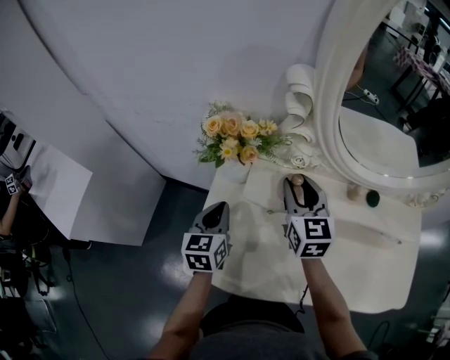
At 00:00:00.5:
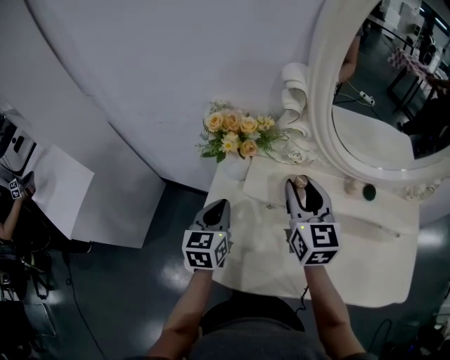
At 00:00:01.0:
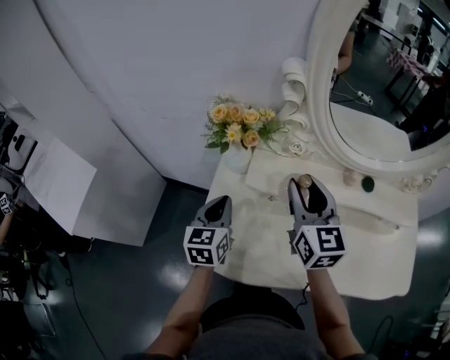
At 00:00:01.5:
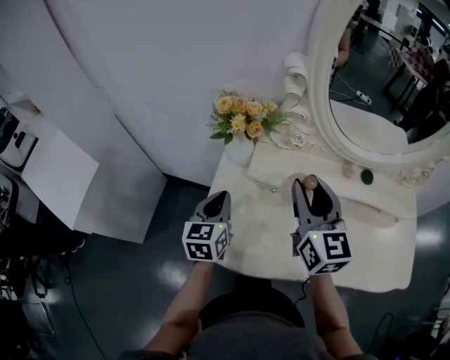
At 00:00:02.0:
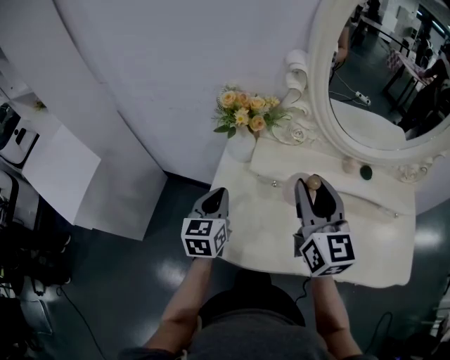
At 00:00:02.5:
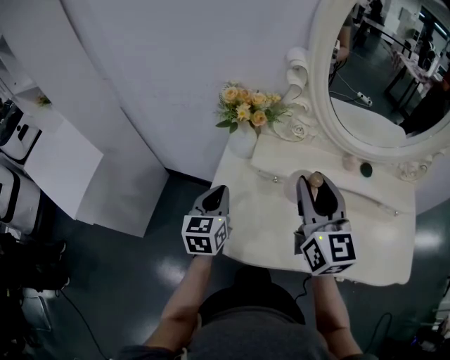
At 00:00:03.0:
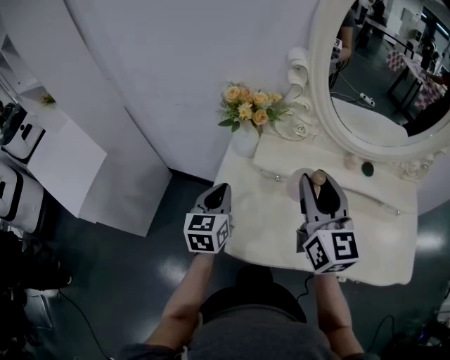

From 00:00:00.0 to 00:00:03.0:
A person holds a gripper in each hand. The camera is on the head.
From 00:00:00.0 to 00:00:01.5: The left gripper shifts by some 5 cm. Meanwhile the right gripper travels backward and upward by approximately 15 cm.
From 00:00:01.5 to 00:00:03.0: The right gripper ends up approximately 5 cm from where it was.

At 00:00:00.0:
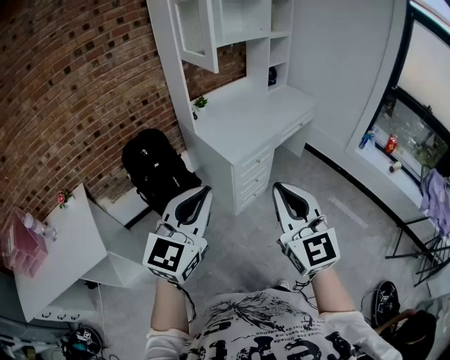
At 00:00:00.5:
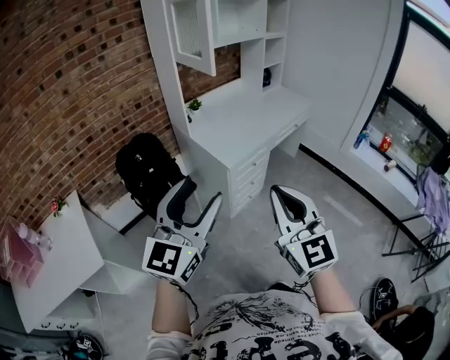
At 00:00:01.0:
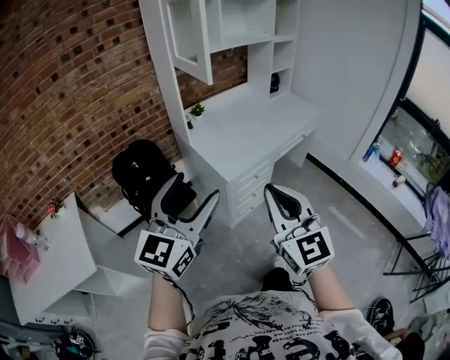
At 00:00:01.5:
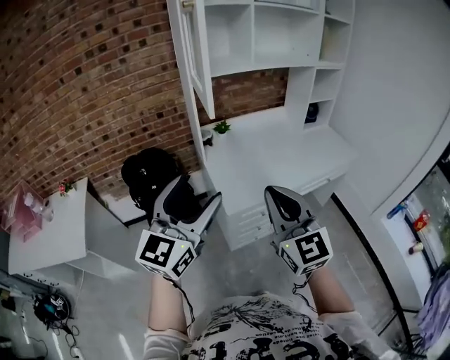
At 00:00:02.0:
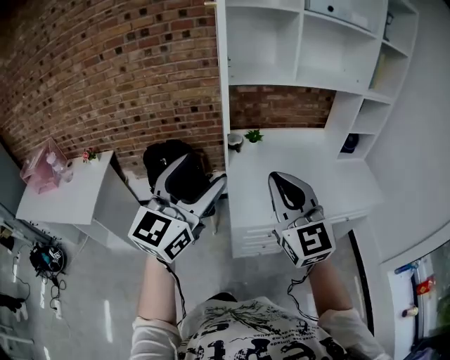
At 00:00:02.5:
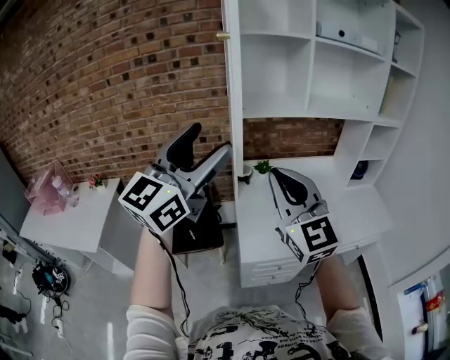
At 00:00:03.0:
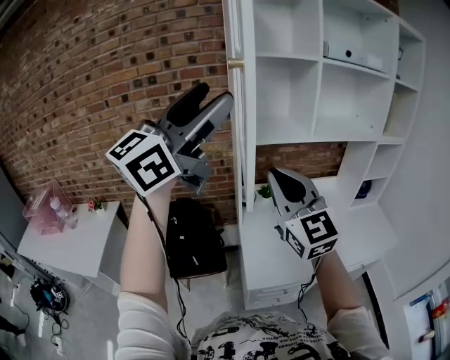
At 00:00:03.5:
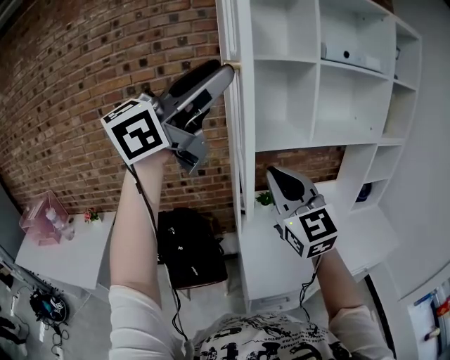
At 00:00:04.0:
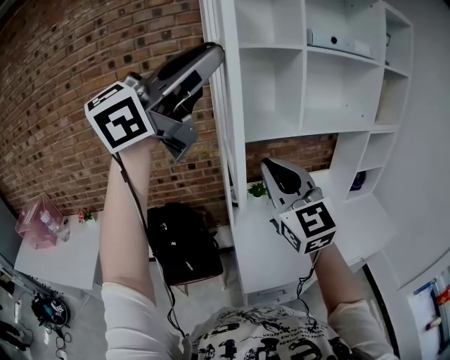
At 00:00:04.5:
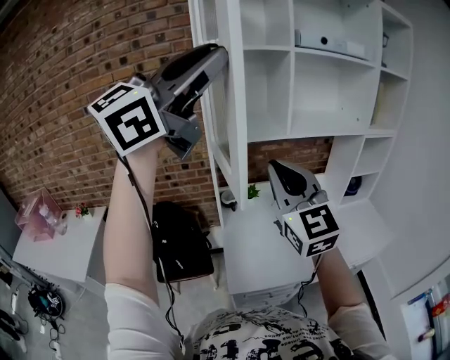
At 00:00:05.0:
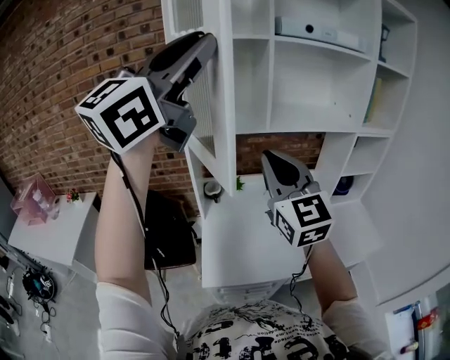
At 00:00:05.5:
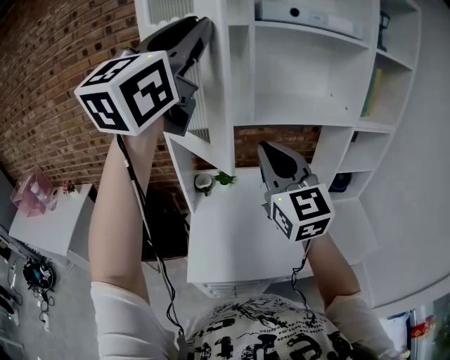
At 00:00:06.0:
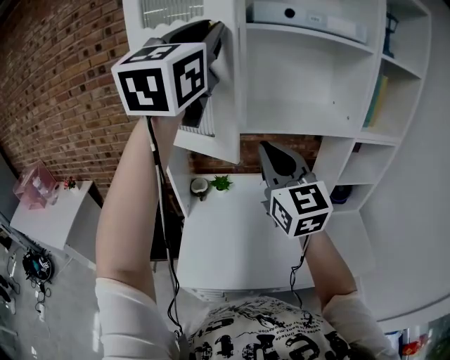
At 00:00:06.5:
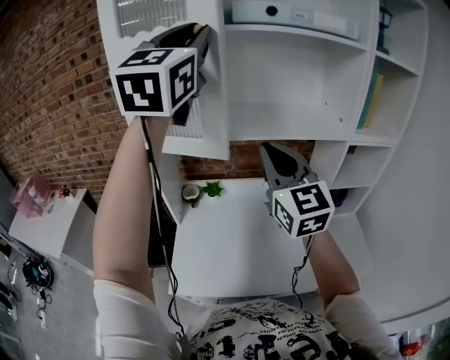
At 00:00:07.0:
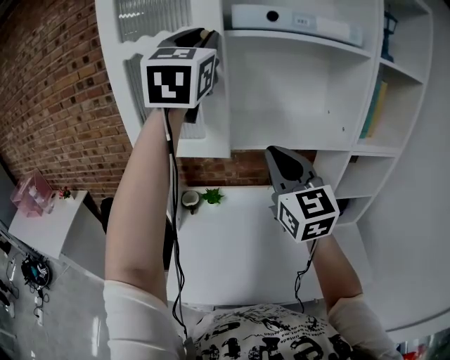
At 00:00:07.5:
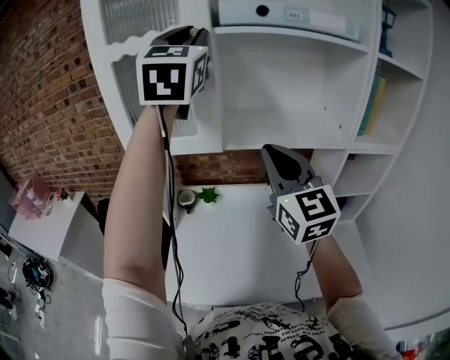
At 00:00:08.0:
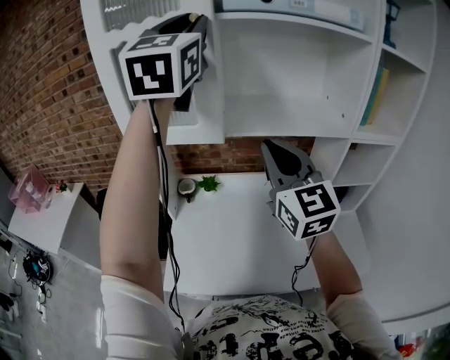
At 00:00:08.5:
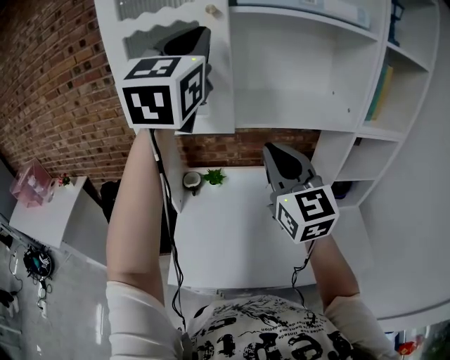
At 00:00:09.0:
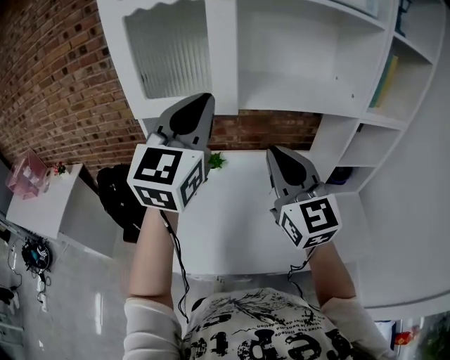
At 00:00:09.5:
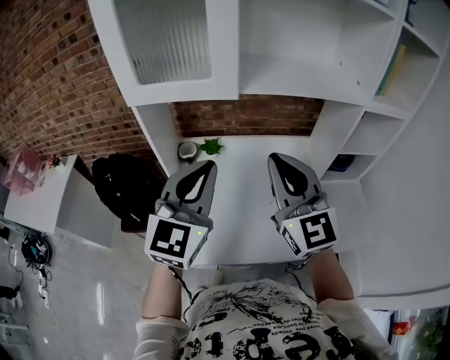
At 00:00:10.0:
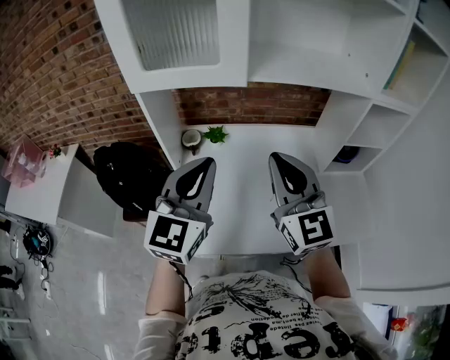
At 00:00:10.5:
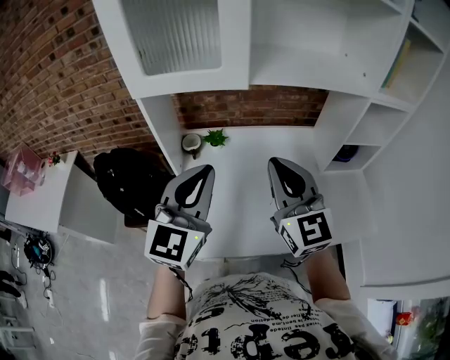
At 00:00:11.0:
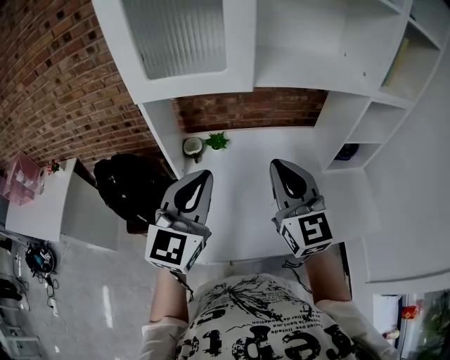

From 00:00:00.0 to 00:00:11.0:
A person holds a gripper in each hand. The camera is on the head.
From 00:00:00.0 to 00:00:02.0: Both grippers are carried approximately 50 cm. The right gripper rotates some 30 degrees; the left gripper swivels about 30 degrees, and opens up.
From 00:00:02.0 to 00:00:03.5: The left gripper shifts about 35 cm upward and forward, changes its angle by about 30 degrees, and closes; the right gripper moves forward, upward and to the left, approximately 25 cm.
From 00:00:03.5 to 00:00:05.5: Both grippers move to the right and forward, about 25 cm. The left gripper turns by some 40 degrees.
From 00:00:05.5 to 00:00:07.5: The left gripper heads forward and to the right, covering approximately 25 cm, and changes its angle by some 30 degrees. Meanwhile the right gripper is displaced to the right and forward by approximately 20 cm.
From 00:00:07.5 to 00:00:09.0: The left gripper travels downward and backward by approximately 25 cm; the right gripper heads downward and backward, covering some 10 cm.
From 00:00:09.0 to 00:00:11.0: The right gripper heads downward, covering approximately 10 cm. Meanwhile the left gripper shifts about 20 cm downward.

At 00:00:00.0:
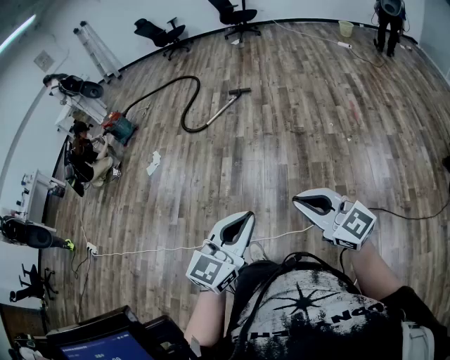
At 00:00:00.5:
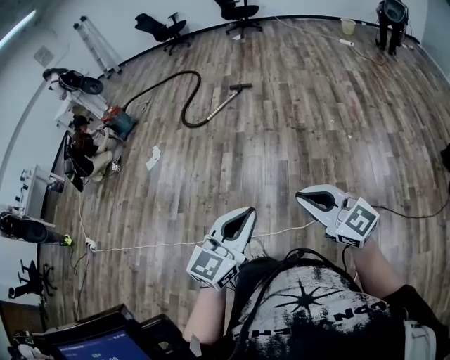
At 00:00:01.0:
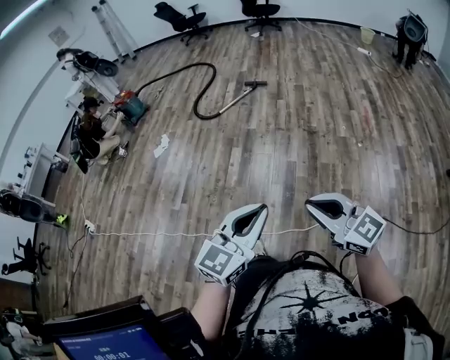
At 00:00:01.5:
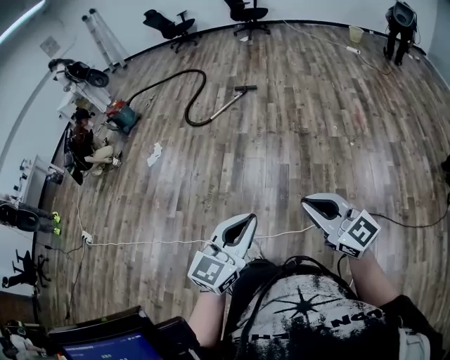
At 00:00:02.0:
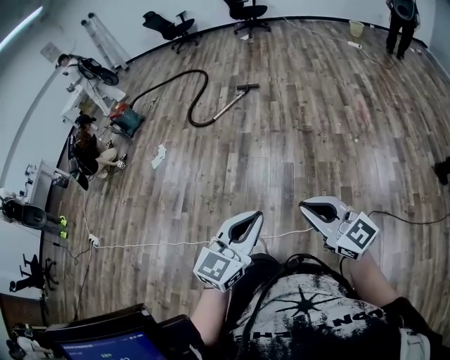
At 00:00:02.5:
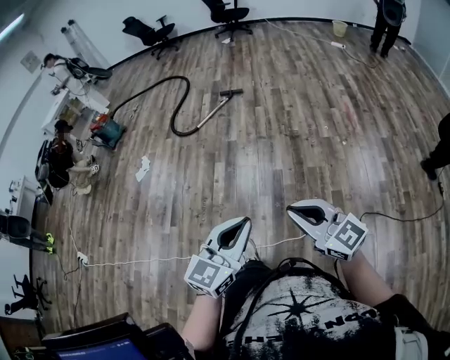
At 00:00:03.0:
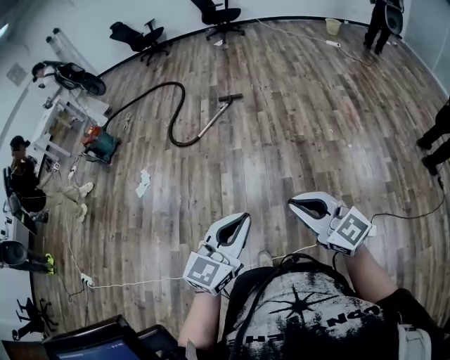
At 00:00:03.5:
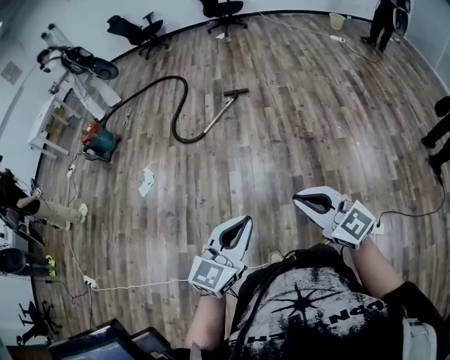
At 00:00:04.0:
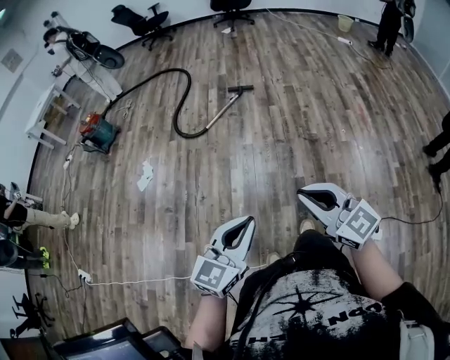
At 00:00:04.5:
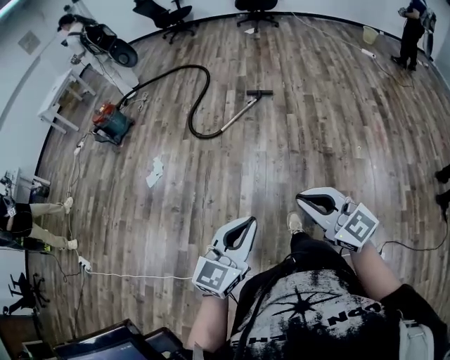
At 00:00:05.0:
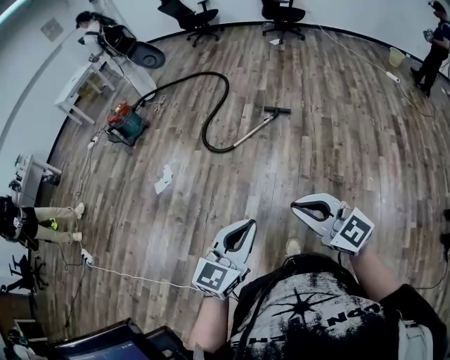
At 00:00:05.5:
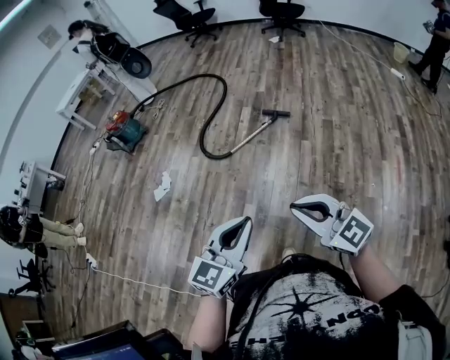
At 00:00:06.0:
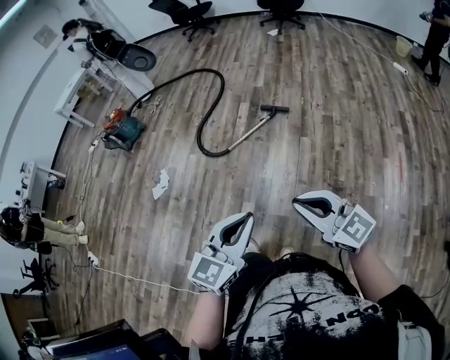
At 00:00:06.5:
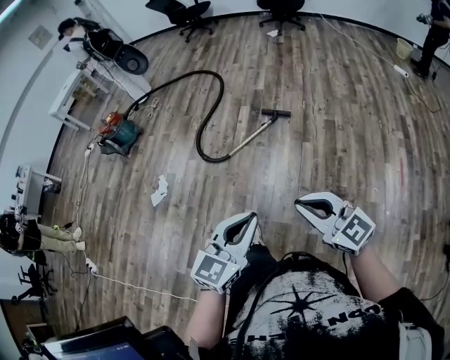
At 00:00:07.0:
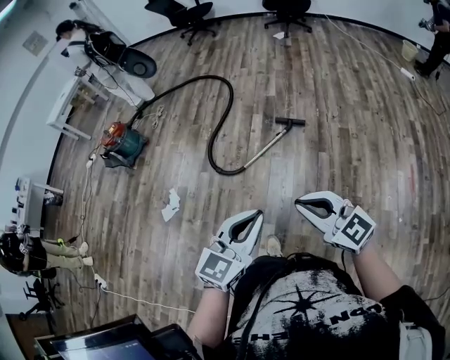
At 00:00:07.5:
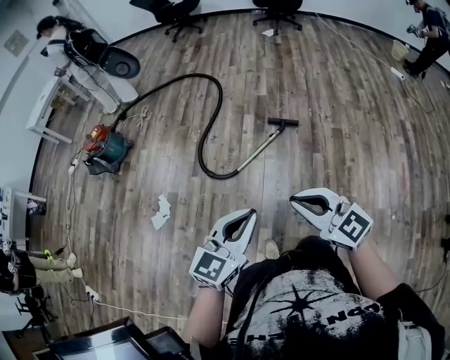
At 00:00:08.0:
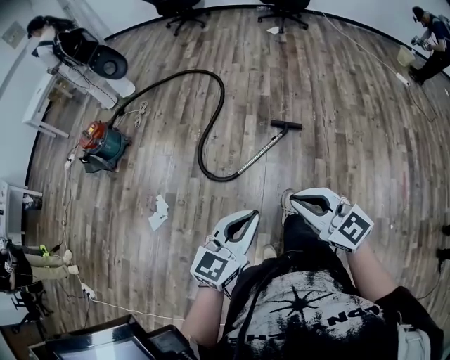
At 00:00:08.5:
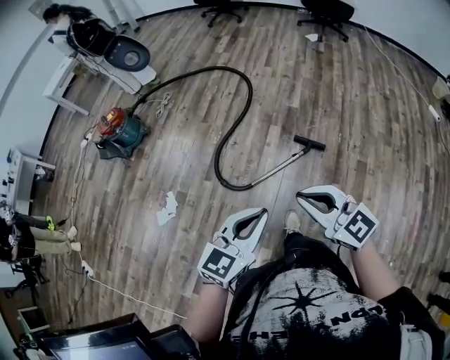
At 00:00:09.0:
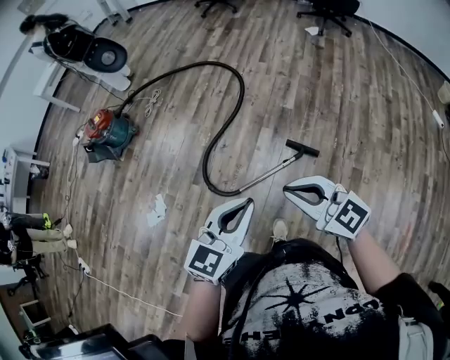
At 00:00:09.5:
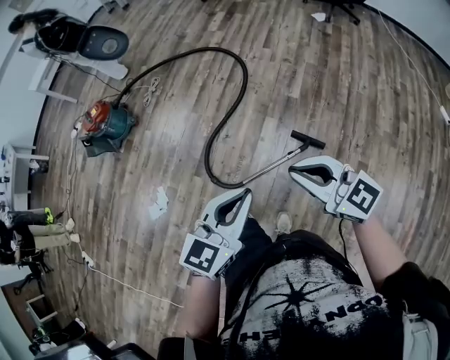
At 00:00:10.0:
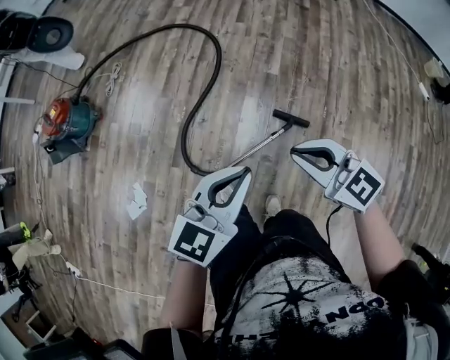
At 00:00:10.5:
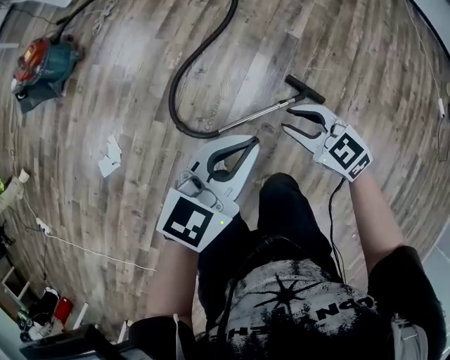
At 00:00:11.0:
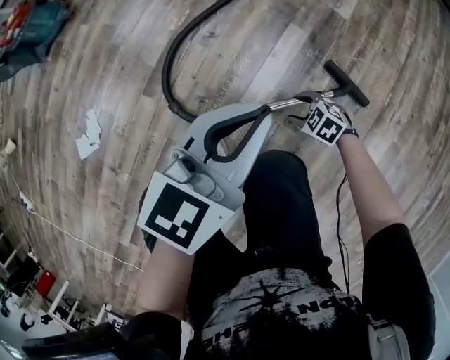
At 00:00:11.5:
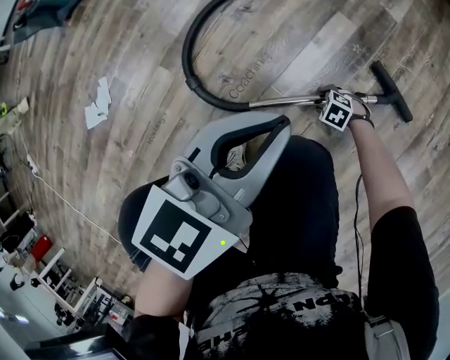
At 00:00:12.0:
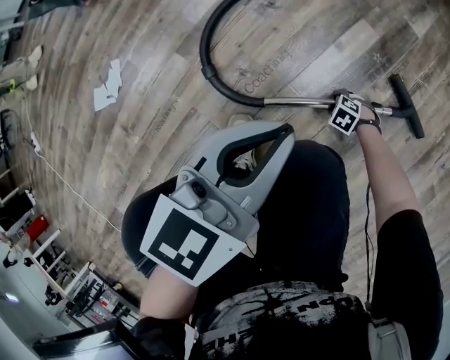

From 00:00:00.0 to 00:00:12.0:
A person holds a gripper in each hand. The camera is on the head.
From 00:00:00.0 to 00:00:02.0: The grippers stay close to where they were, moving slightly.
From 00:00:02.0 to 00:00:04.0: Both grippers move forward and to the left, roughly 40 cm.
From 00:00:04.0 to 00:00:06.0: Both grippers travel together forward and to the right, roughly 35 cm.
From 00:00:06.0 to 00:00:08.0: The pair of grippers is taken forward and to the left, approximately 40 cm.
From 00:00:08.0 to 00:00:10.0: The two grippers travel together, forward, approximately 50 cm.
From 00:00:10.0 to 00:00:12.0: The right gripper heads downward, covering approximately 90 cm, angles its fingers downward, by about 60 degrees, and opens its fingers. Meanwhile the left gripper travels downward by approximately 50 cm, and turns by some 30 degrees.
